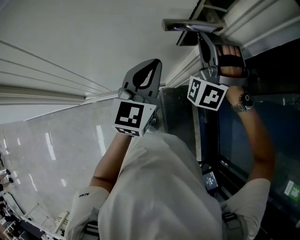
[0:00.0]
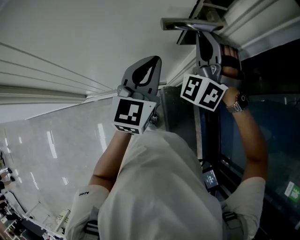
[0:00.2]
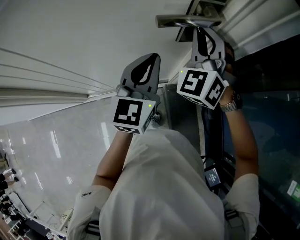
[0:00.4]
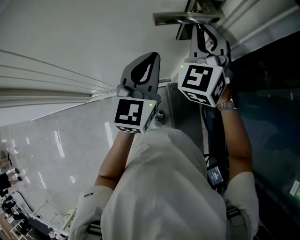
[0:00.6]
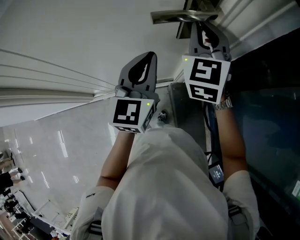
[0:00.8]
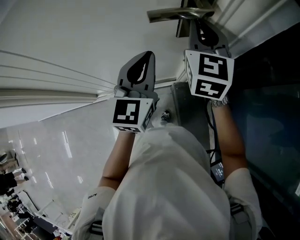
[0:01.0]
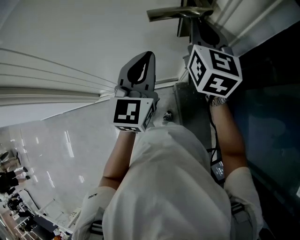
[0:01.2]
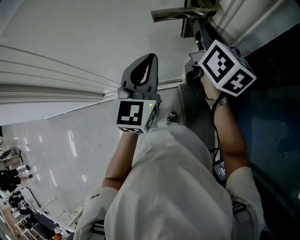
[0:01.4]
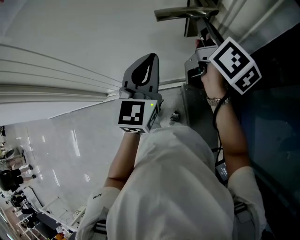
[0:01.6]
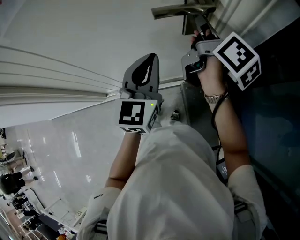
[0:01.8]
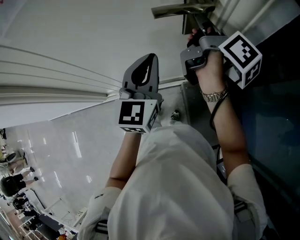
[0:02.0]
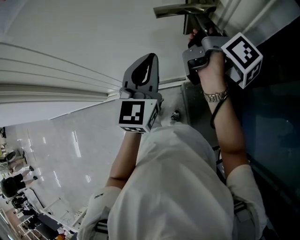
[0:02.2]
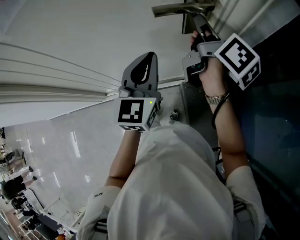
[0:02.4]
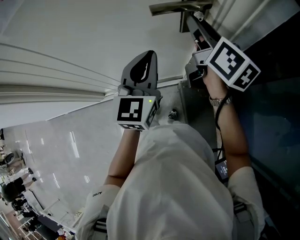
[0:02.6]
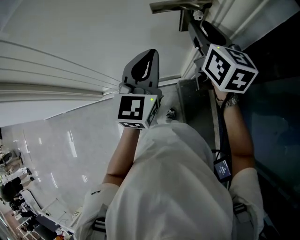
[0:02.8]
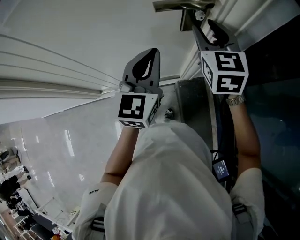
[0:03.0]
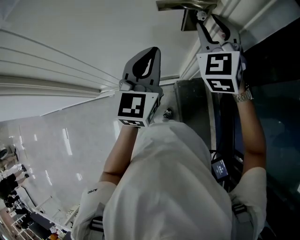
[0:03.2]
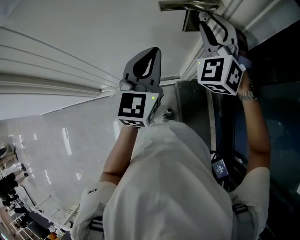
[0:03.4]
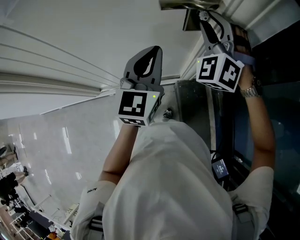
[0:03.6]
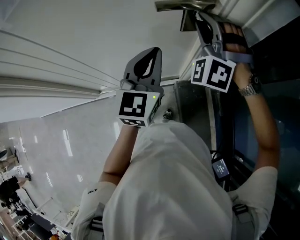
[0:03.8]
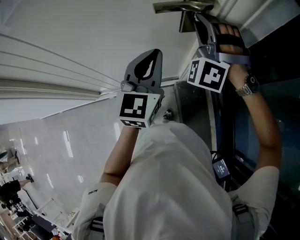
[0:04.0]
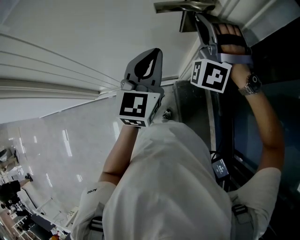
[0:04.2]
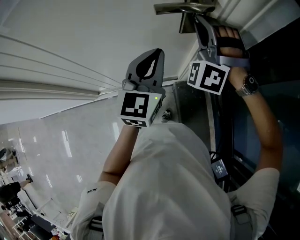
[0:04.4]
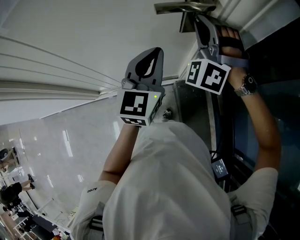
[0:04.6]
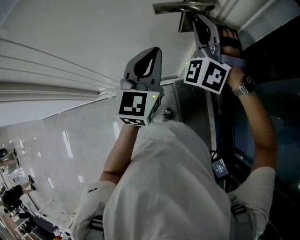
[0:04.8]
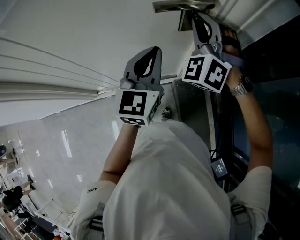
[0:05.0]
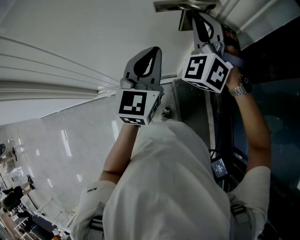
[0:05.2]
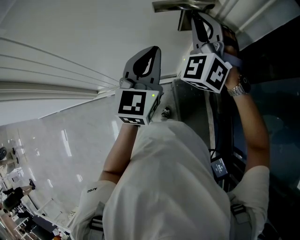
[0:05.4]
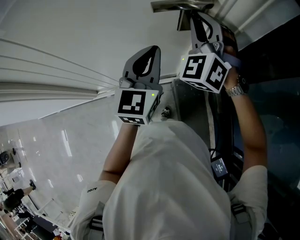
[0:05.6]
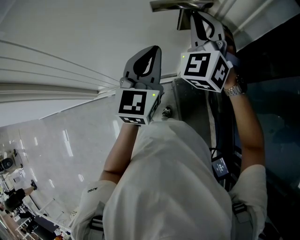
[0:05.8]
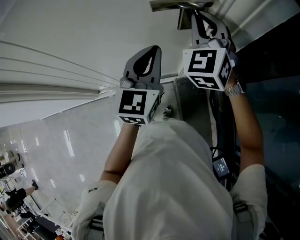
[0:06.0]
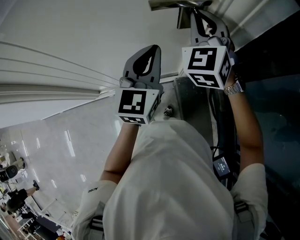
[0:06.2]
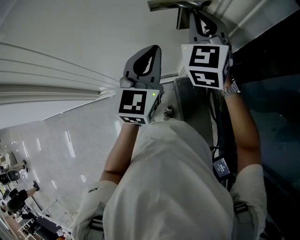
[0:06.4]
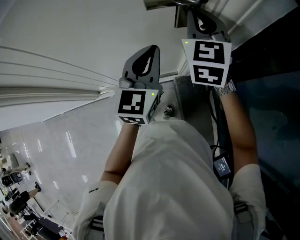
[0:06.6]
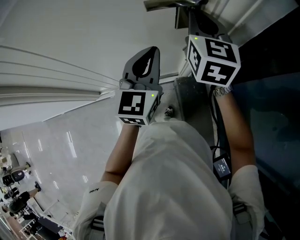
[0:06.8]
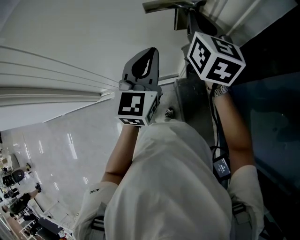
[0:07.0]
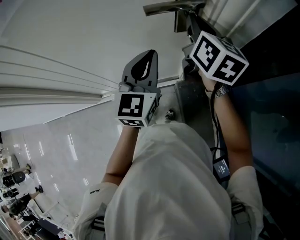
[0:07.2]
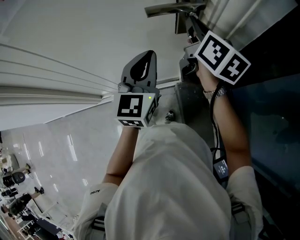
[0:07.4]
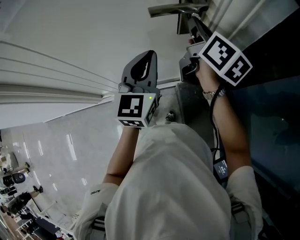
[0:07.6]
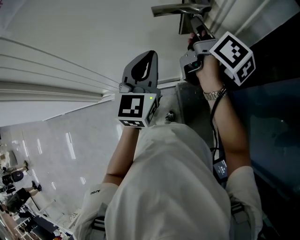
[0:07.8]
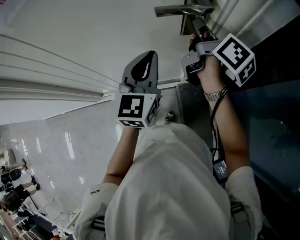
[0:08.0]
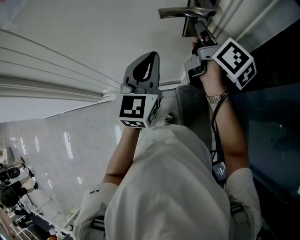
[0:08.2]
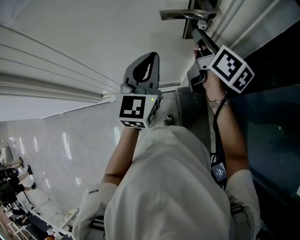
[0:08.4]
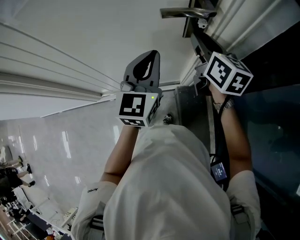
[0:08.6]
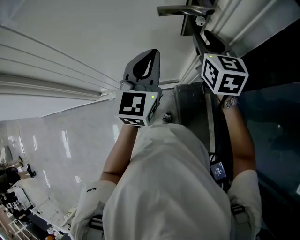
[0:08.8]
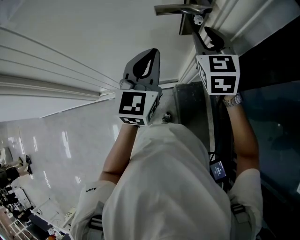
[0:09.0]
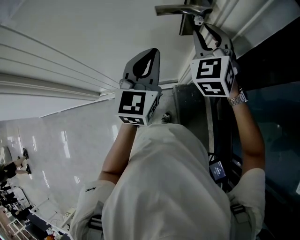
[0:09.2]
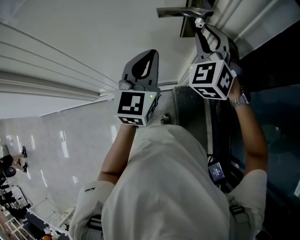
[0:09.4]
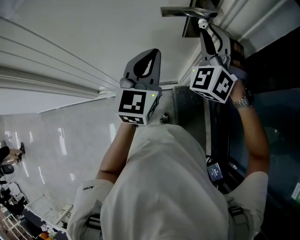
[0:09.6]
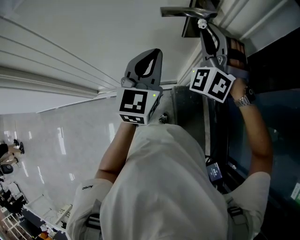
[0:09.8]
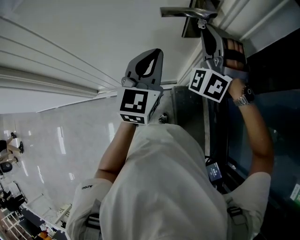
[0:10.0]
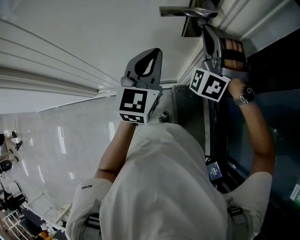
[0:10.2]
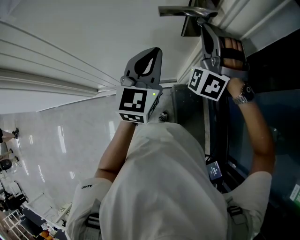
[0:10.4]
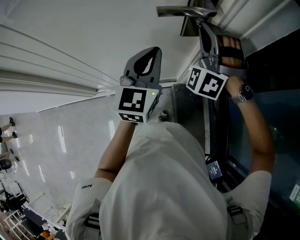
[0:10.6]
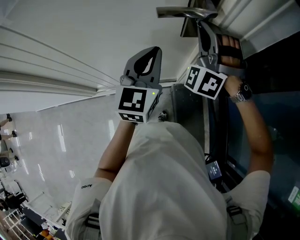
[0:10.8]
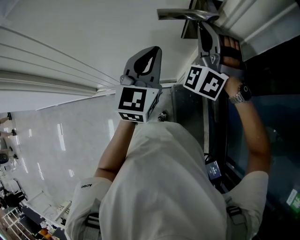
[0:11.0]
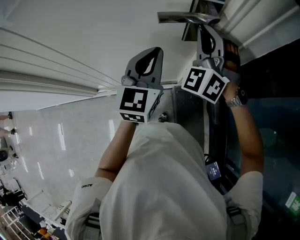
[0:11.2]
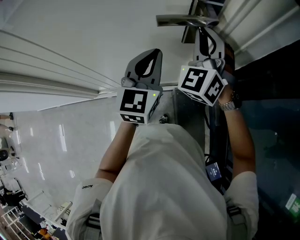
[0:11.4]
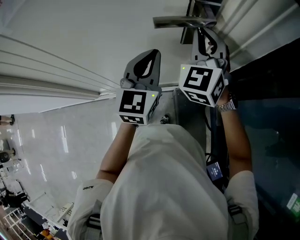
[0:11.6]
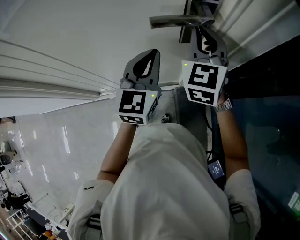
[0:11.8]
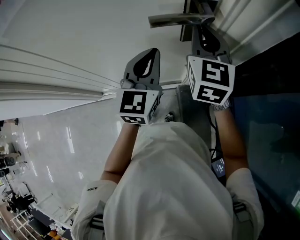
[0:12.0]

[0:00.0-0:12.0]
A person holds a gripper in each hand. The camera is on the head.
0:00.0 to 0:01.6: The right gripper rolls clockwise, seen from behind, by approximately 140 degrees.
0:01.6 to 0:03.0: The right gripper rolls counterclockwise, seen from behind, by some 60 degrees, and opens.
0:03.0 to 0:04.4: The right gripper twists some 70 degrees counterclockwise, seen from behind.
0:04.4 to 0:06.0: The right gripper rolls clockwise, seen from behind, by roughly 50 degrees.
0:06.0 to 0:07.6: The right gripper rotates around the line of its fingers by approximately 80 degrees, clockwise from behind.
0:07.6 to 0:09.0: The right gripper rolls counterclockwise, seen from behind, by roughly 60 degrees, and opens.
0:09.0 to 0:10.4: The right gripper twists approximately 70 degrees counterclockwise, seen from behind, and closes its fingers.
0:10.4 to 0:12.0: The right gripper twists some 80 degrees clockwise, seen from behind.

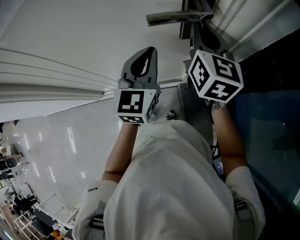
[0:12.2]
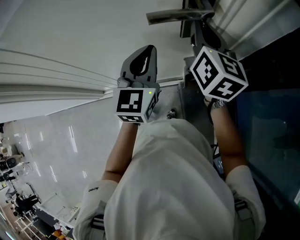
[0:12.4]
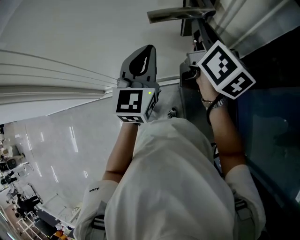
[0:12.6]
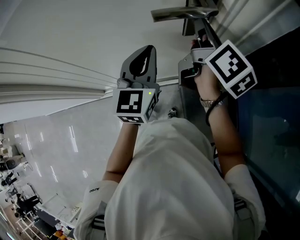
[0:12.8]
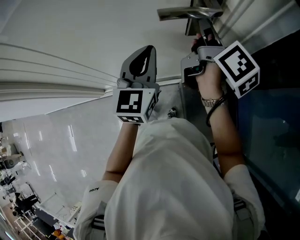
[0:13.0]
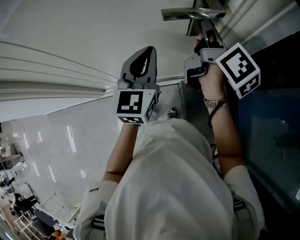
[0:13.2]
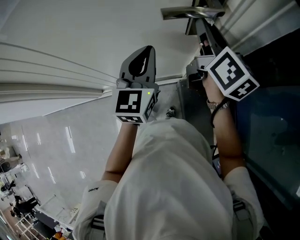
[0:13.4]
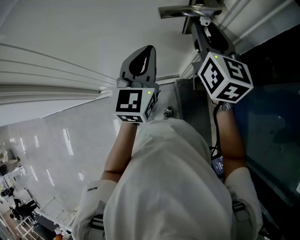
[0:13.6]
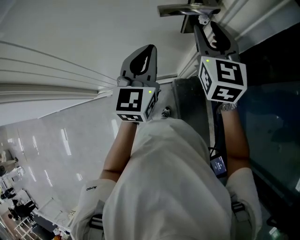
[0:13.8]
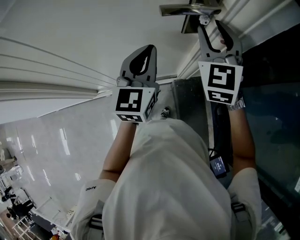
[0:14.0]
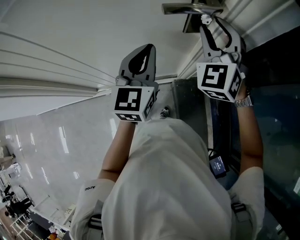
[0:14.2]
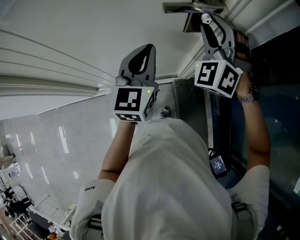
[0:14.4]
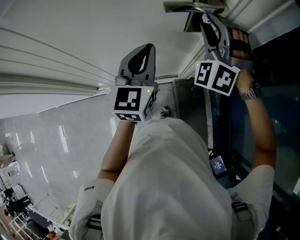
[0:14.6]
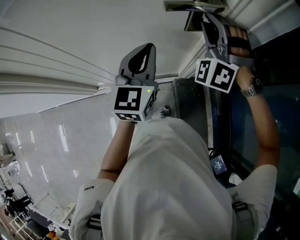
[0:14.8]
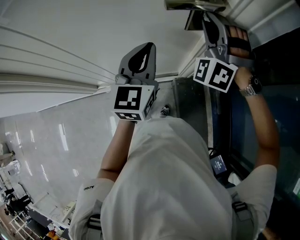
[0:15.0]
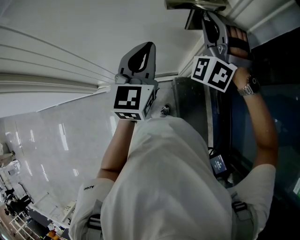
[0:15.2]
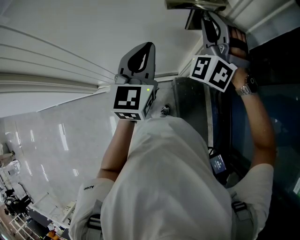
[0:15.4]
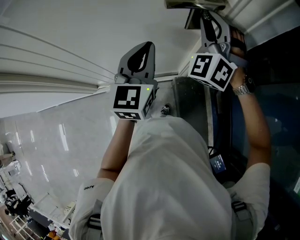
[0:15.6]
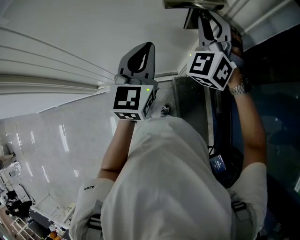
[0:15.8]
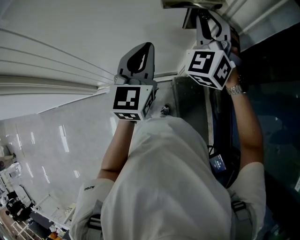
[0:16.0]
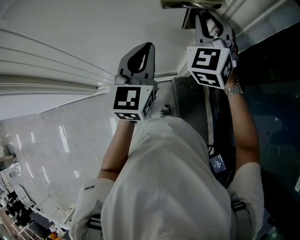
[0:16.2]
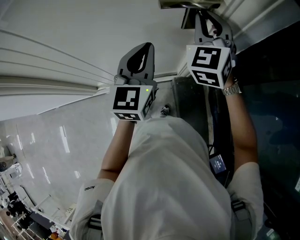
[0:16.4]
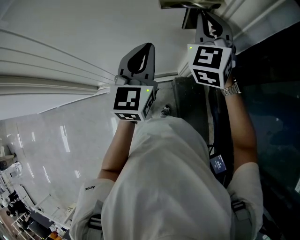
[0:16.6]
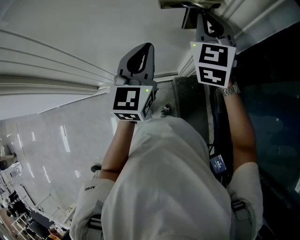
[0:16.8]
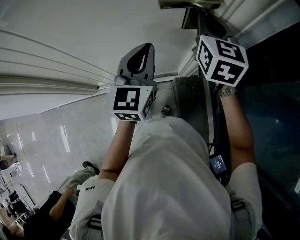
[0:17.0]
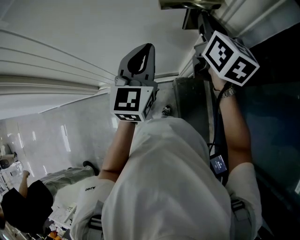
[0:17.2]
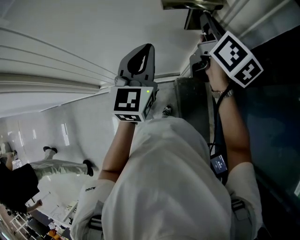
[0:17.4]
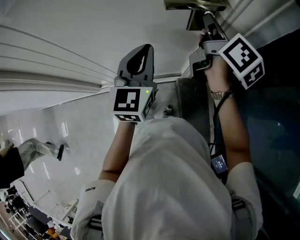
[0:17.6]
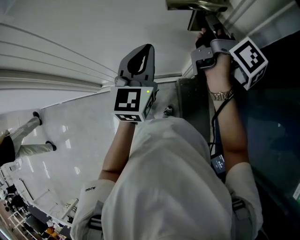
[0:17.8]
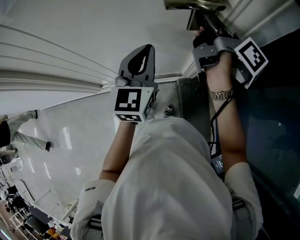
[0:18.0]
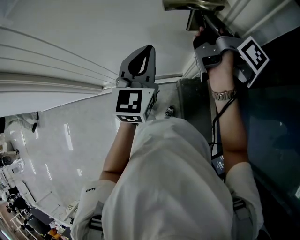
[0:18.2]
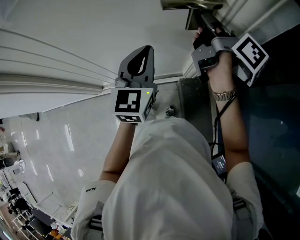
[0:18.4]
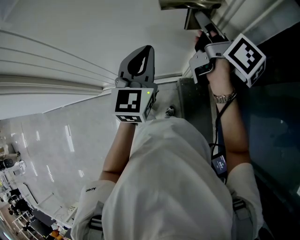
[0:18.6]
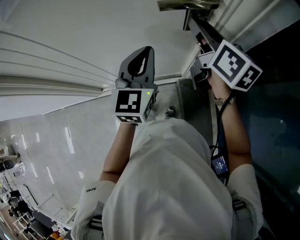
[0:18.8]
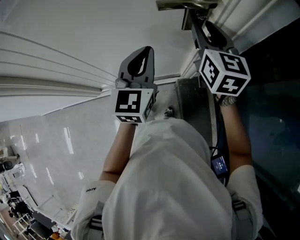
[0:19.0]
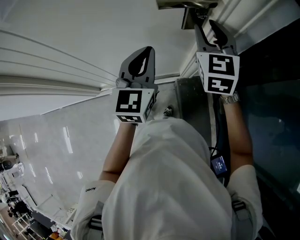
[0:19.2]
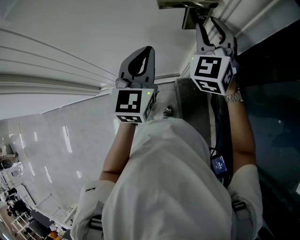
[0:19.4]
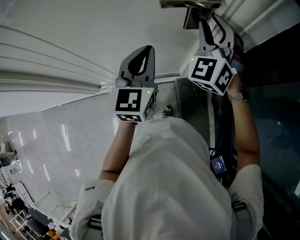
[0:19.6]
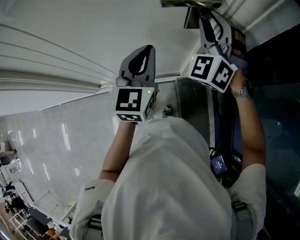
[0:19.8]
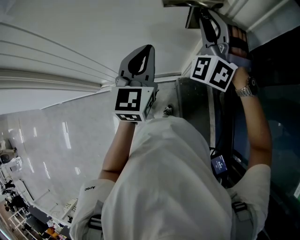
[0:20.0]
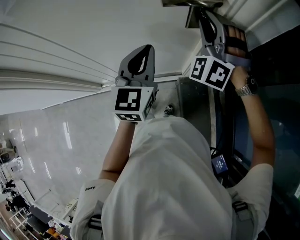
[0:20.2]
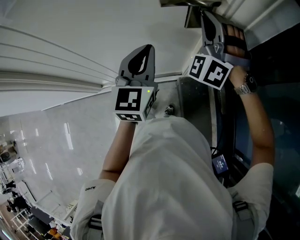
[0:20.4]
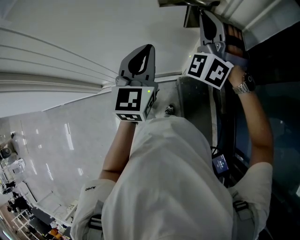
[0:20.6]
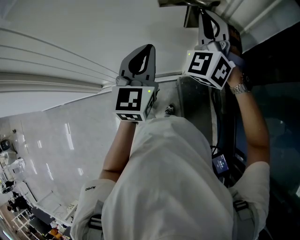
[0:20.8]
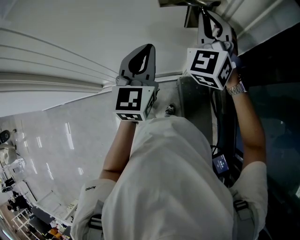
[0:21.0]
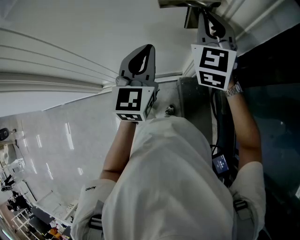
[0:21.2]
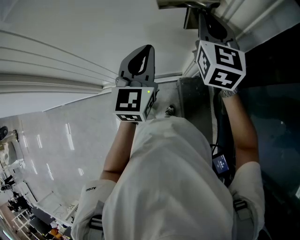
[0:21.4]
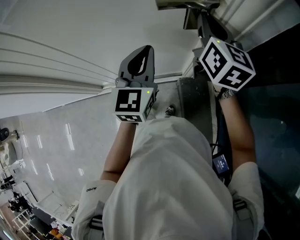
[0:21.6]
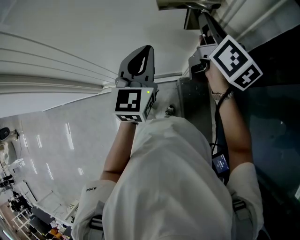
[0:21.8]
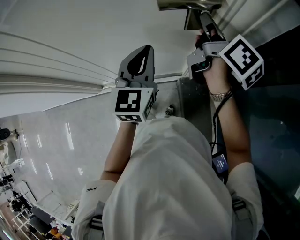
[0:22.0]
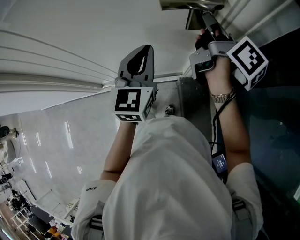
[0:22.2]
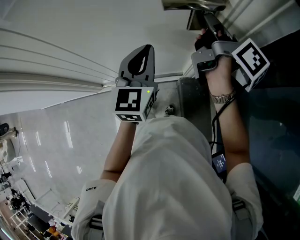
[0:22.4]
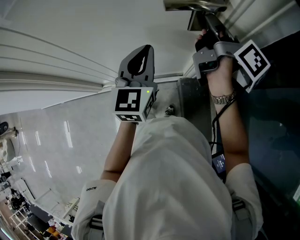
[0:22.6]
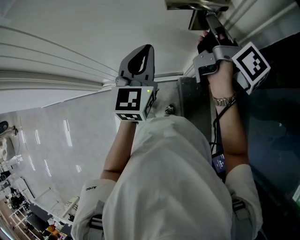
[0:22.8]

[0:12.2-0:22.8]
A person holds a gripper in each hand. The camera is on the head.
0:12.2 to 0:13.8: The right gripper opens.
0:13.8 to 0:15.2: The right gripper twists some 70 degrees counterclockwise, seen from behind.
0:15.2 to 0:16.8: The right gripper rolls clockwise, seen from behind, by some 60 degrees.
0:16.8 to 0:18.2: The right gripper rotates around the line of its fingers by some 100 degrees, clockwise from behind.
0:18.2 to 0:19.8: The right gripper rotates around the line of its fingers by approximately 140 degrees, counterclockwise from behind, and opens its fingers.
0:19.8 to 0:21.2: The right gripper rolls clockwise, seen from behind, by roughly 40 degrees, and closes.
0:21.2 to 0:22.8: The right gripper twists approximately 90 degrees clockwise, seen from behind.

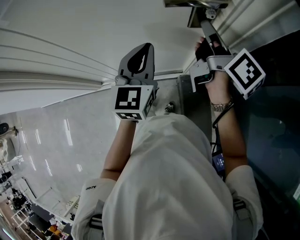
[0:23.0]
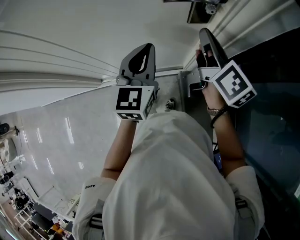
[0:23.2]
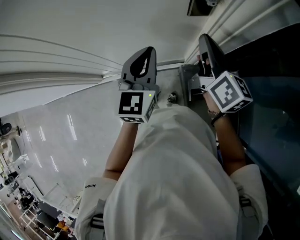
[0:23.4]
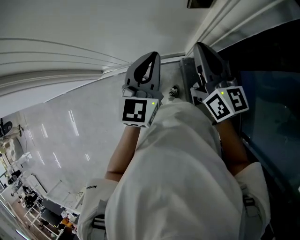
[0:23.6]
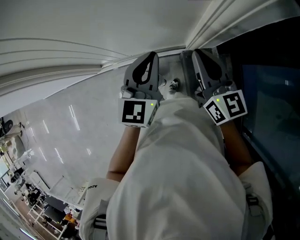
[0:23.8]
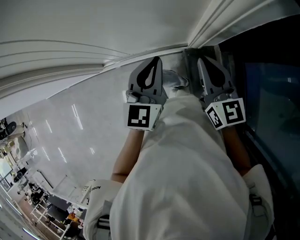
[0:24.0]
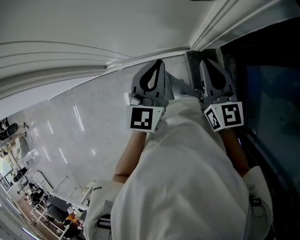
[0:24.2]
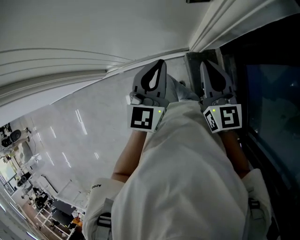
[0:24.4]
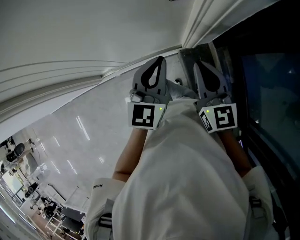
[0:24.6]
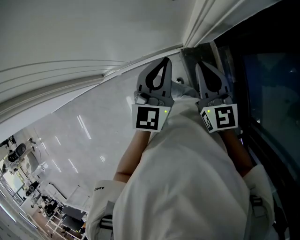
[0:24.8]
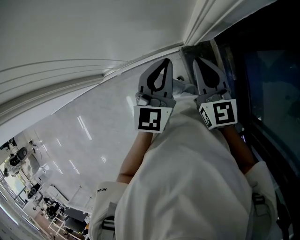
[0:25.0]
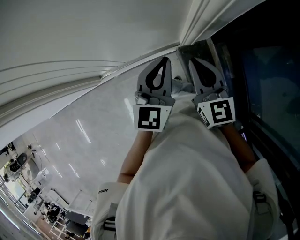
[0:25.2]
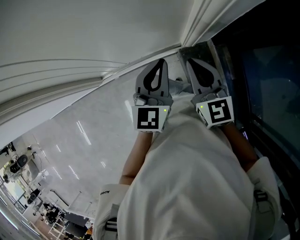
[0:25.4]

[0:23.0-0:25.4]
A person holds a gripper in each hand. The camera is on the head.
0:23.0 to 0:24.2: The left gripper moves backward and downward, about 10 cm, while the right gripper travels backward and downward by approximately 20 cm, and twists roughly 40 degrees counterclockwise, seen from behind.
0:24.2 to 0:25.4: The grippers move only a little.
